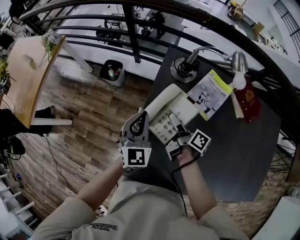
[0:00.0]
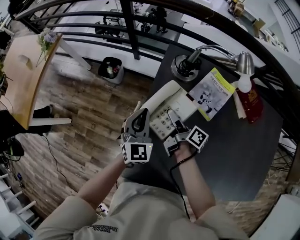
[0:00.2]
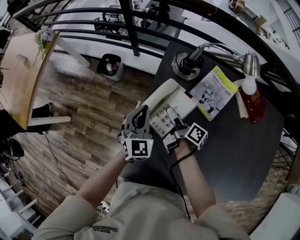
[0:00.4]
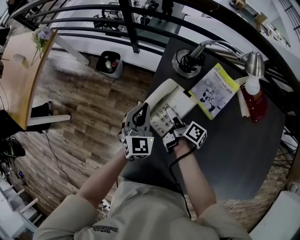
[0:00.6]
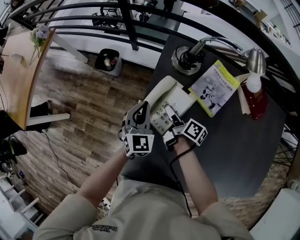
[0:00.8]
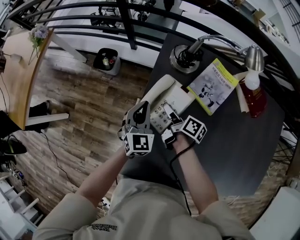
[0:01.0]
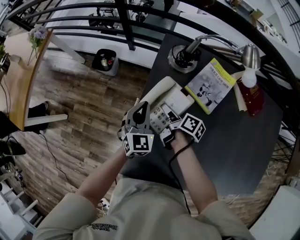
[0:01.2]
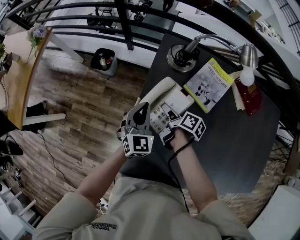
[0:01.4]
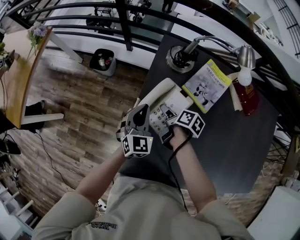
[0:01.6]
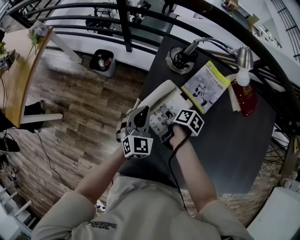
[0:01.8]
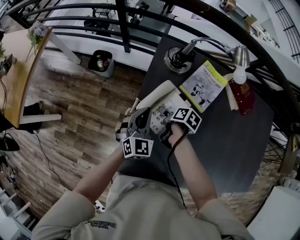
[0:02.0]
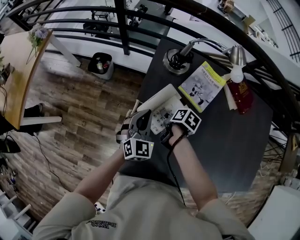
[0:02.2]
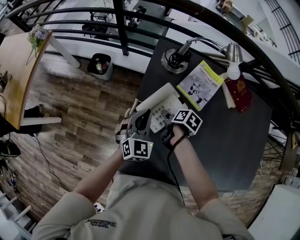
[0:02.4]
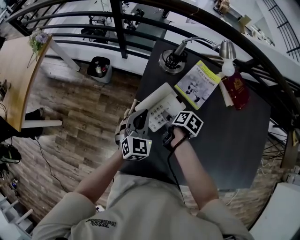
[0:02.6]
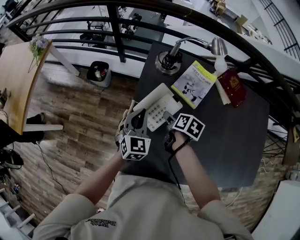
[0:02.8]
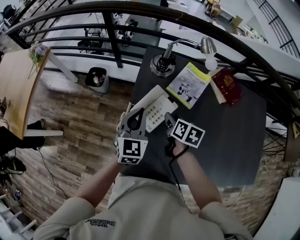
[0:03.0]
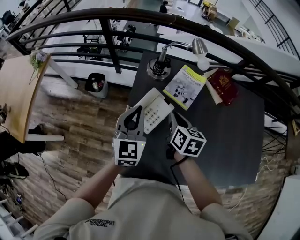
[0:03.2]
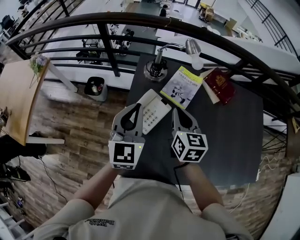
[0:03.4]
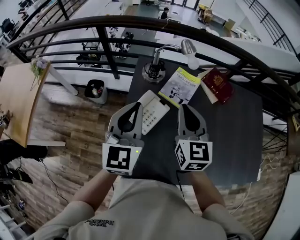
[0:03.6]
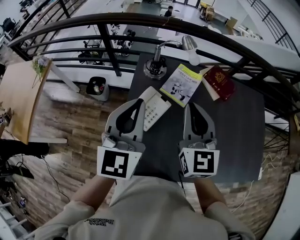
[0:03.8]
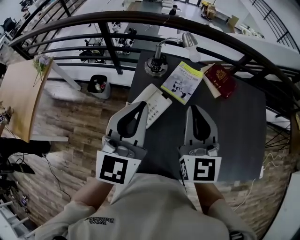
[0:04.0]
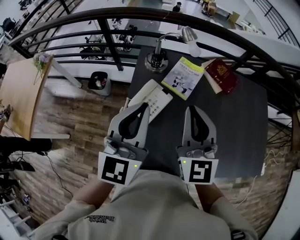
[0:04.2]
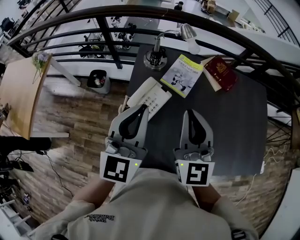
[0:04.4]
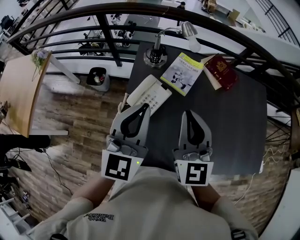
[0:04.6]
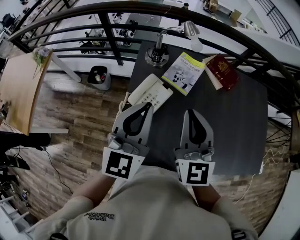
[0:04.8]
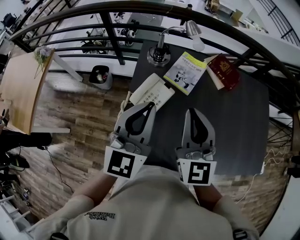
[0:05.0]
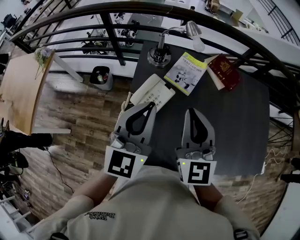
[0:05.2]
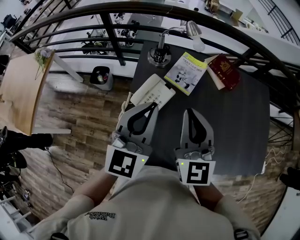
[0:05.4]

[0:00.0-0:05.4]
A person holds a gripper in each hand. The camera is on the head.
0:00.0 to 0:01.4: The grippers both shift downward by about 10 cm. The right gripper turns by roughly 20 degrees.
0:01.4 to 0:02.8: The right gripper travels backward, upward and to the right by approximately 10 cm, rotates approximately 30 degrees, and opens up. The left gripper heads backward, covering approximately 5 cm.
0:02.8 to 0:04.0: Both grippers move upward, roughly 30 cm. The left gripper changes its angle by some 30 degrees, while the right gripper angles its fingers upward, by about 50 degrees, and closes its fingers.
0:04.0 to 0:05.4: The grippers stay close to where they were, moving slightly.

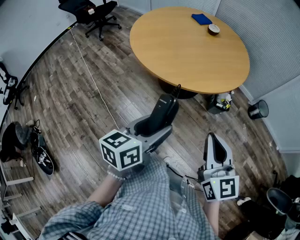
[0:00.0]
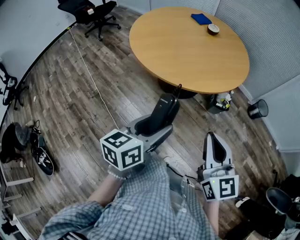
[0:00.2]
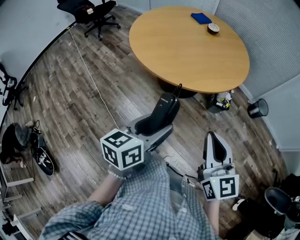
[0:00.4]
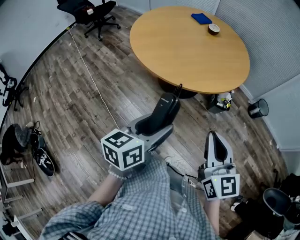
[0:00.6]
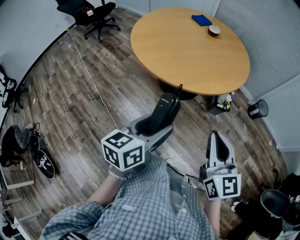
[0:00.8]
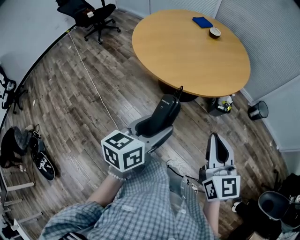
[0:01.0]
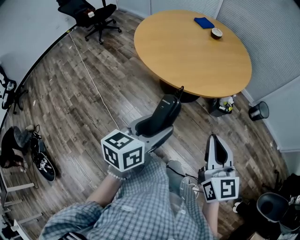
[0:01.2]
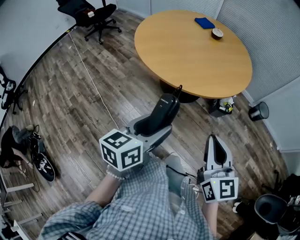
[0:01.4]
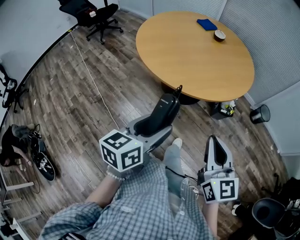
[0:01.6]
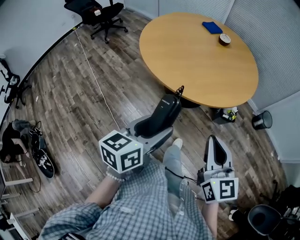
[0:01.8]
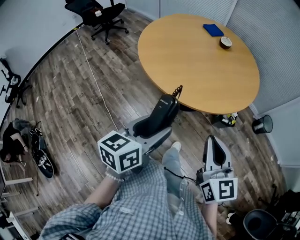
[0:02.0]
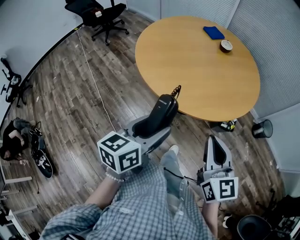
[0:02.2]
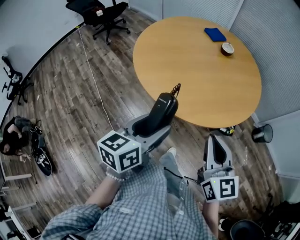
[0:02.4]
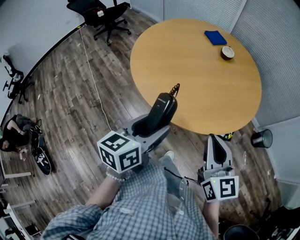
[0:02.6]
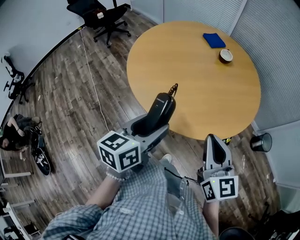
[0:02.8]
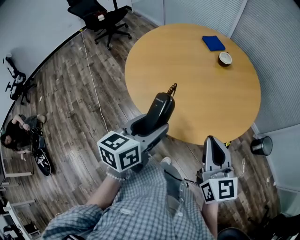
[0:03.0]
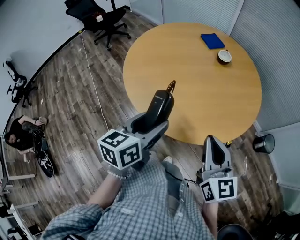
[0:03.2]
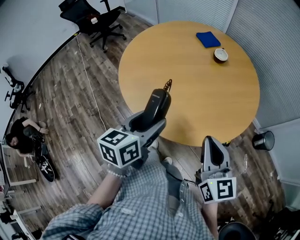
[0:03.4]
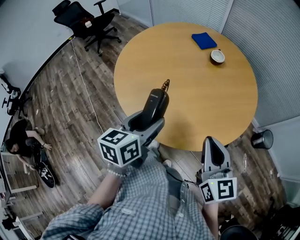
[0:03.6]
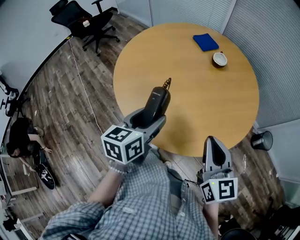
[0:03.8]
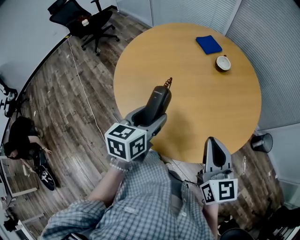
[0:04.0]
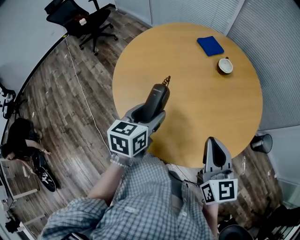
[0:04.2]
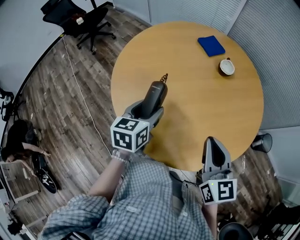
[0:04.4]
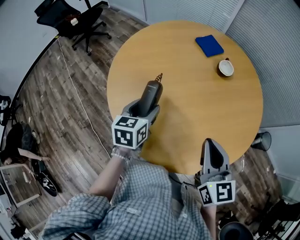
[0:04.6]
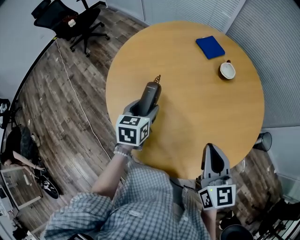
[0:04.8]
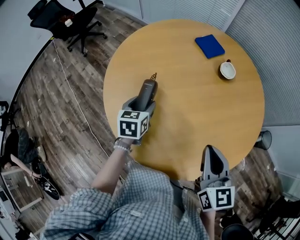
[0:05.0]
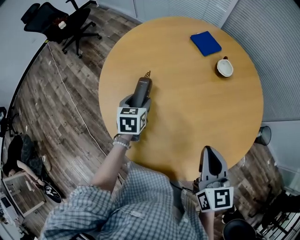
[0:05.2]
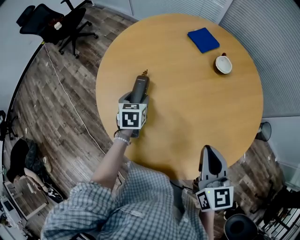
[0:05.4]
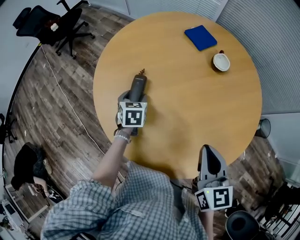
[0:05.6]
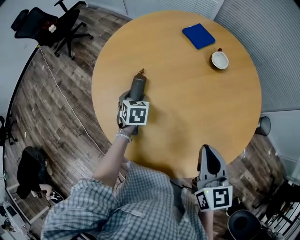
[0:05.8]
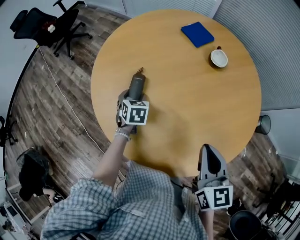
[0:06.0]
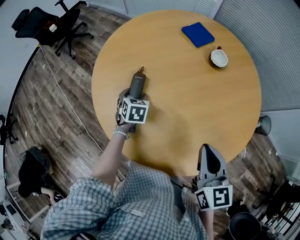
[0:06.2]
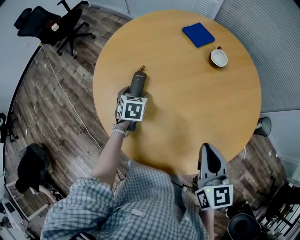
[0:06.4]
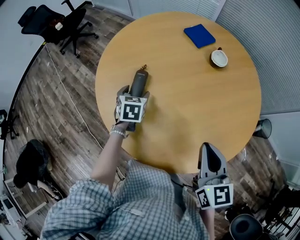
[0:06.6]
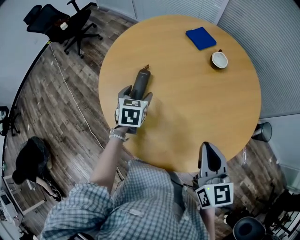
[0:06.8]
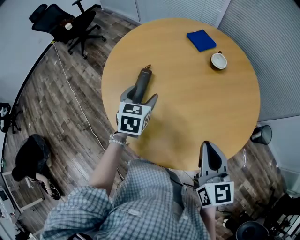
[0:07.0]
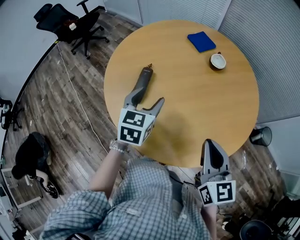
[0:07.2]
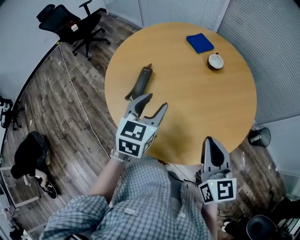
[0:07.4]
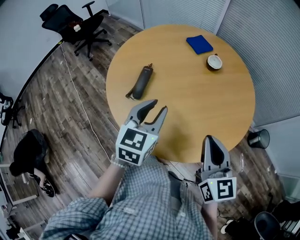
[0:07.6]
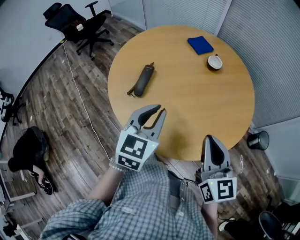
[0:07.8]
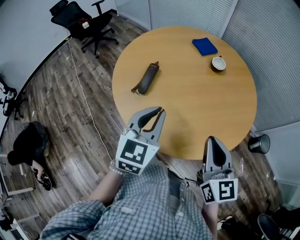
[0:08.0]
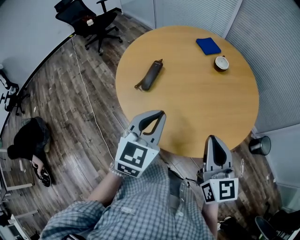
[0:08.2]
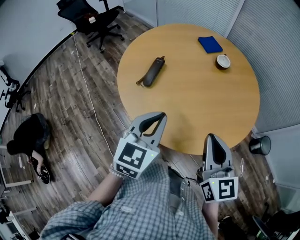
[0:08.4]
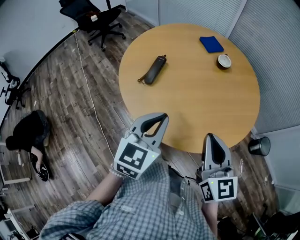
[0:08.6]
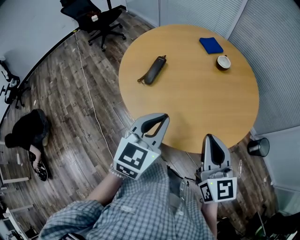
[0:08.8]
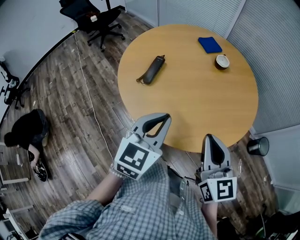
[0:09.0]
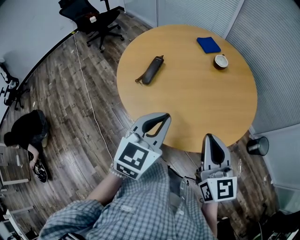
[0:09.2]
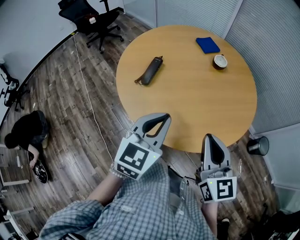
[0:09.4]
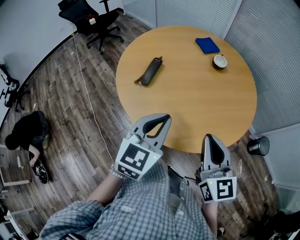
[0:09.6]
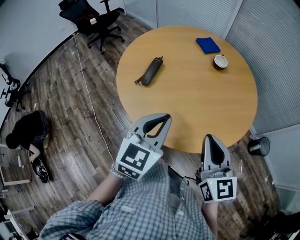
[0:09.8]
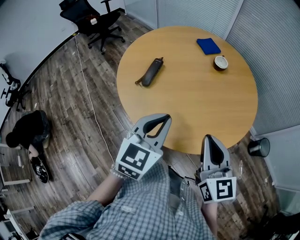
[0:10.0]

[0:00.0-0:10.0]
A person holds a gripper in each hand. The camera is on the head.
0:00.0 to 0:01.4: Both grippers travel together to the left, roughly 5 cm.
0:01.4 to 0:02.8: Both grippers travel together forward, some 25 cm.
0:02.8 to 0:04.2: The two grippers go about 20 cm forward.
0:04.2 to 0:05.8: The left gripper travels forward and downward by some 25 cm, and turns by about 30 degrees, while the right gripper shifts some 5 cm forward.
0:05.8 to 0:07.2: The right gripper moves backward, some 5 cm. The left gripper heads upward, backward and to the right, covering some 25 cm, and turns by some 30 degrees.
0:07.2 to 0:08.6: The left gripper goes roughly 20 cm backward, and closes its fingers; the right gripper heads backward, covering approximately 10 cm.
0:08.6 to 0:10.0: The grippers stay close to where they were, moving slightly.

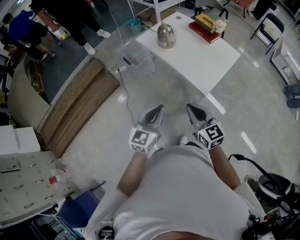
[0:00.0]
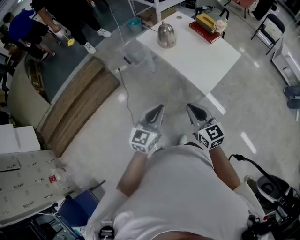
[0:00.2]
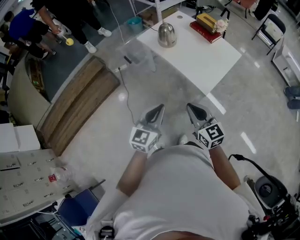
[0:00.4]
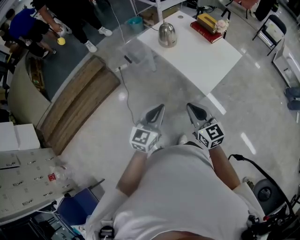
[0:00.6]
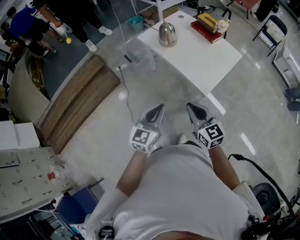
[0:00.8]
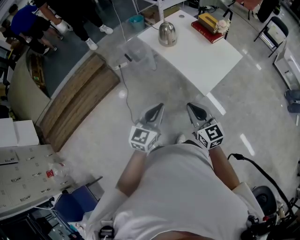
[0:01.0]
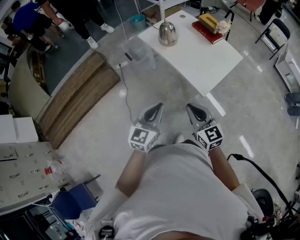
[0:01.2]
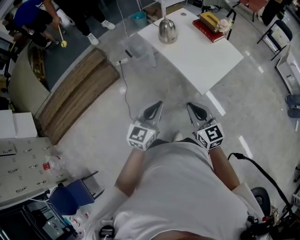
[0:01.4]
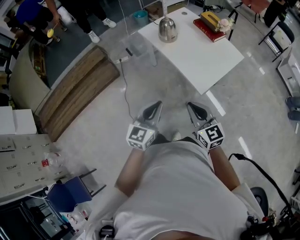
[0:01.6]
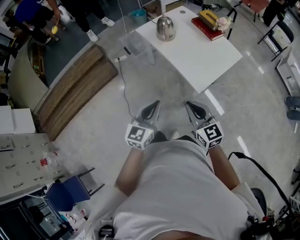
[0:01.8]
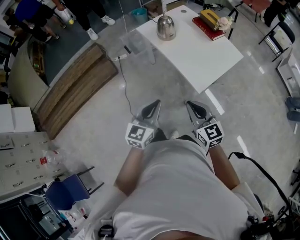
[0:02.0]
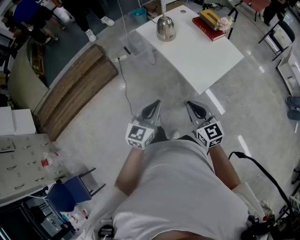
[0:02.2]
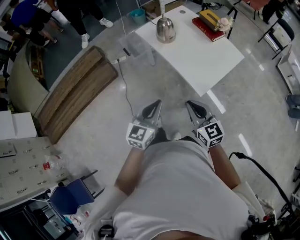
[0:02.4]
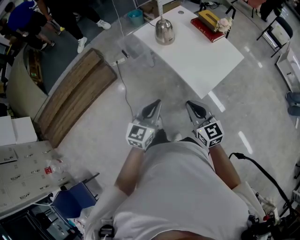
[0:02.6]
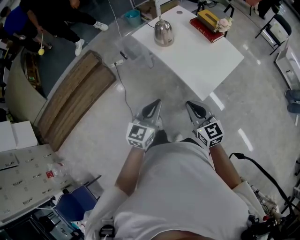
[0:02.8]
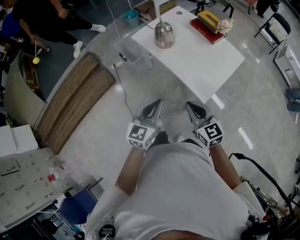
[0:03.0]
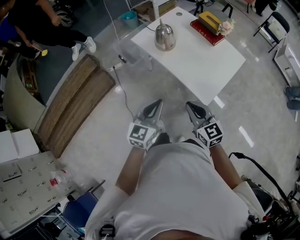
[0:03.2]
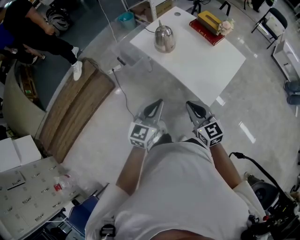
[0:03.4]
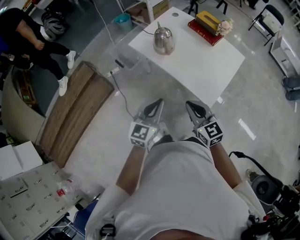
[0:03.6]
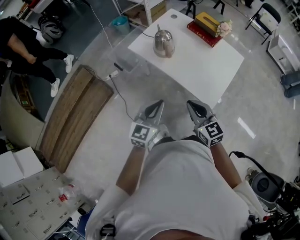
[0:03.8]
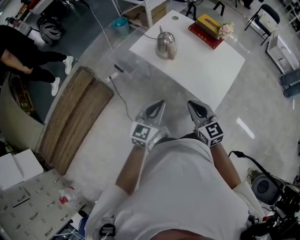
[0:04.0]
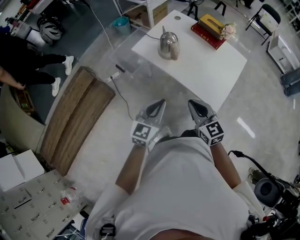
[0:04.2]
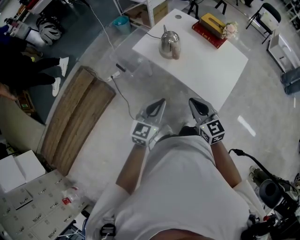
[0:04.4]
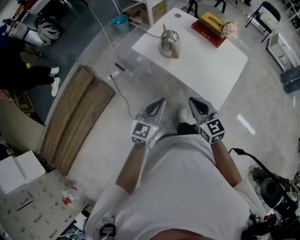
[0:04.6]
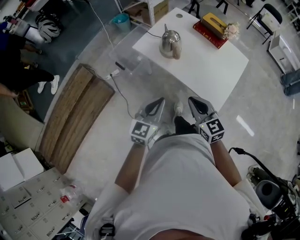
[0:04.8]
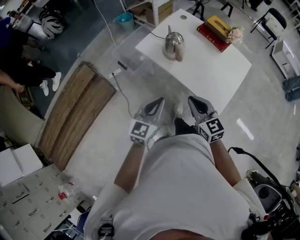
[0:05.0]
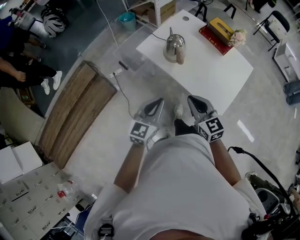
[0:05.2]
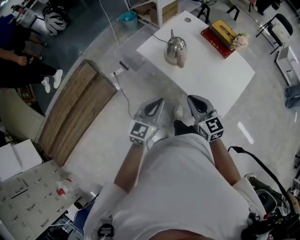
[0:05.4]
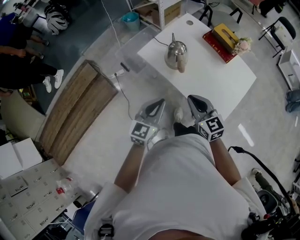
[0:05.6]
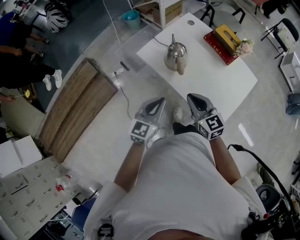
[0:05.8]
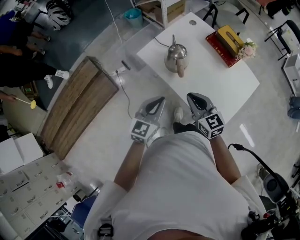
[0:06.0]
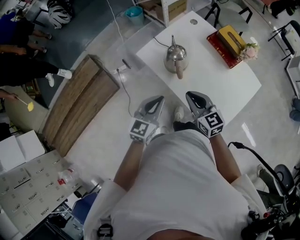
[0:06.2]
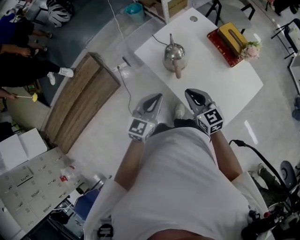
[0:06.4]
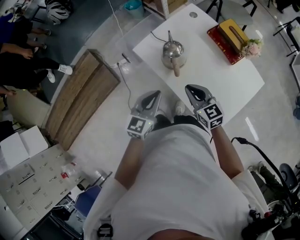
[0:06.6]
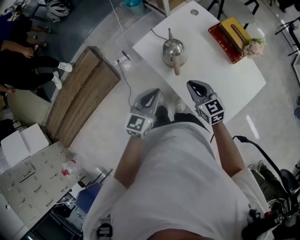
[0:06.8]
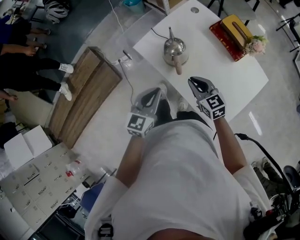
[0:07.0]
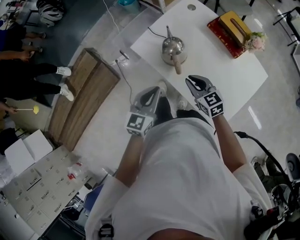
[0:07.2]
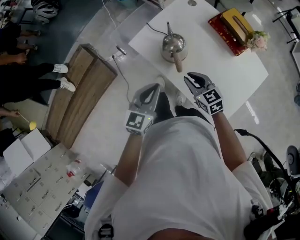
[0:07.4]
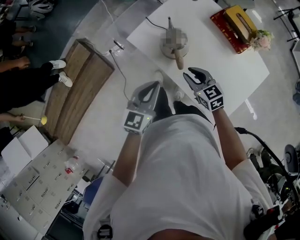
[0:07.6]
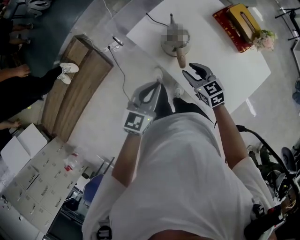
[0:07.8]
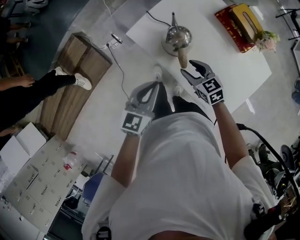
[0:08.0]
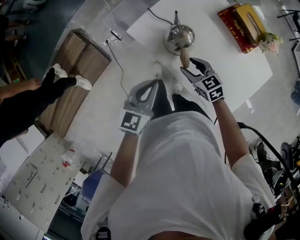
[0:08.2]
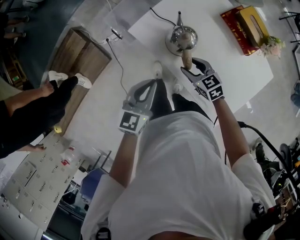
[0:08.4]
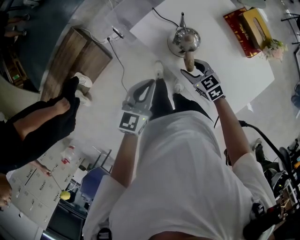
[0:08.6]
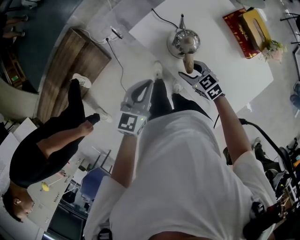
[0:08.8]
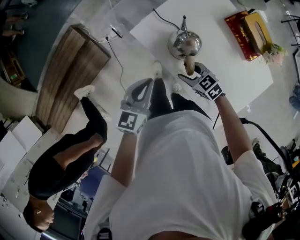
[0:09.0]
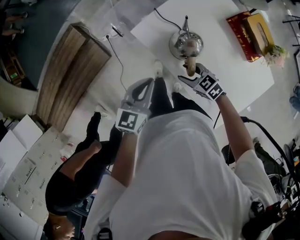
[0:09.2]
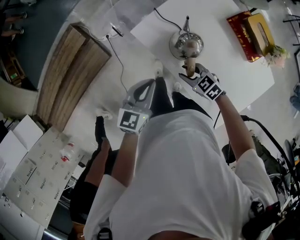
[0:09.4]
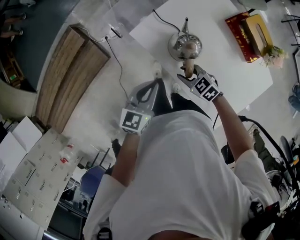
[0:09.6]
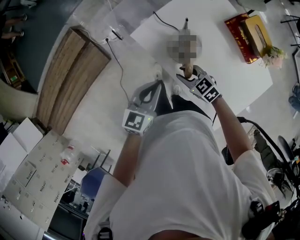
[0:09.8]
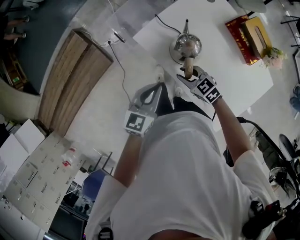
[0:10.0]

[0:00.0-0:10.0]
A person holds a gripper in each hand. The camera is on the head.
0:00.0 to 0:01.4: The right gripper travels to the right by approximately 5 cm.
0:01.4 to 0:02.8: The grippers both shift forward by about 10 cm.
0:02.8 to 0:04.2: The two grippers go approximately 20 cm forward and to the left.
0:04.2 to 0:05.8: Both grippers travel together forward, about 15 cm.
0:05.8 to 0:07.2: The right gripper shifts about 15 cm forward and downward, while the left gripper is displaced forward by some 10 cm.
0:07.2 to 0:08.6: The right gripper goes roughly 15 cm downward, forward and to the left, and opens up. Meanwhile the left gripper moves forward and to the left, roughly 10 cm.
0:08.6 to 0:10.0: The right gripper closes.
